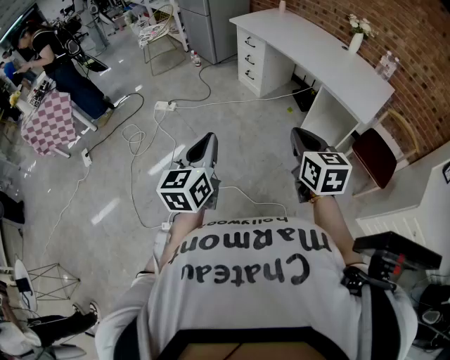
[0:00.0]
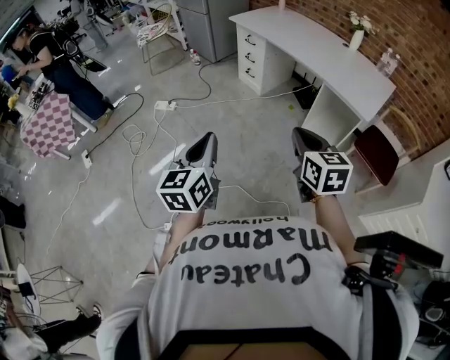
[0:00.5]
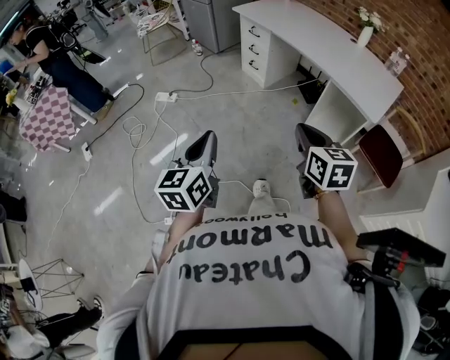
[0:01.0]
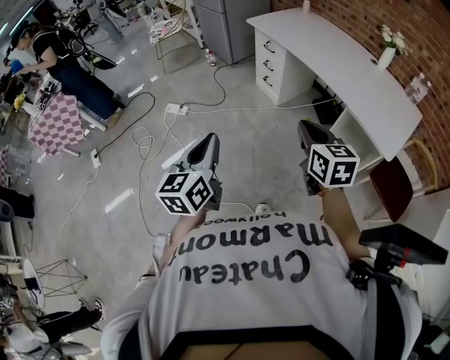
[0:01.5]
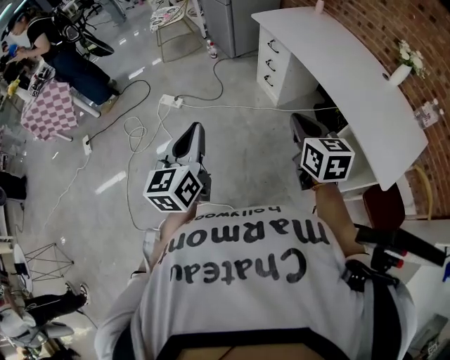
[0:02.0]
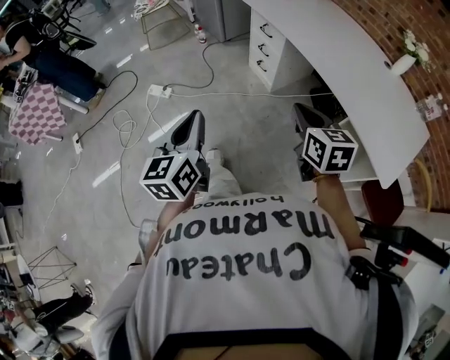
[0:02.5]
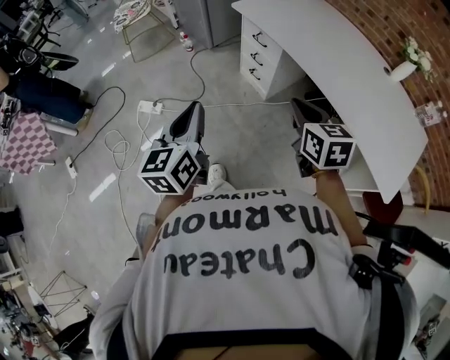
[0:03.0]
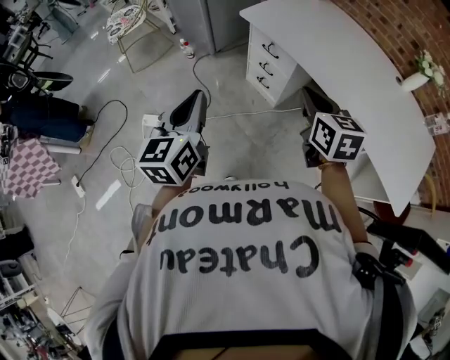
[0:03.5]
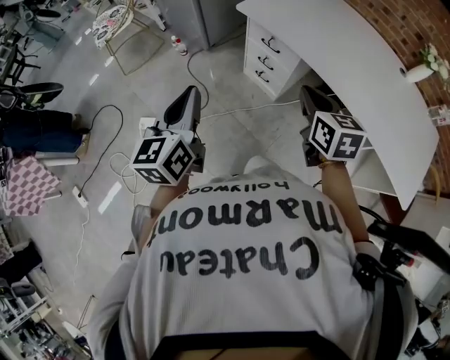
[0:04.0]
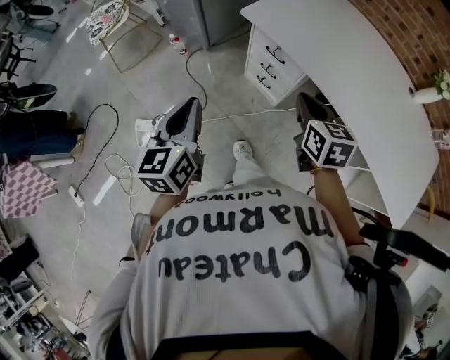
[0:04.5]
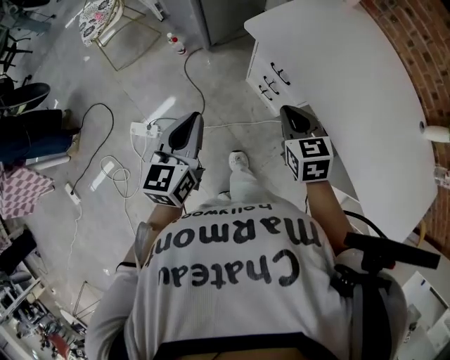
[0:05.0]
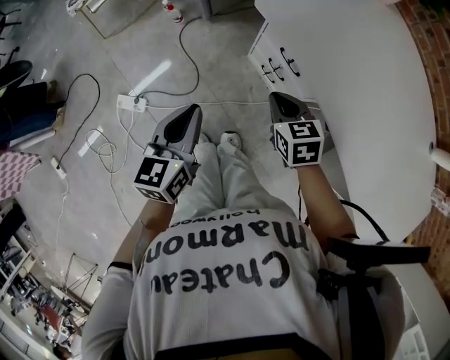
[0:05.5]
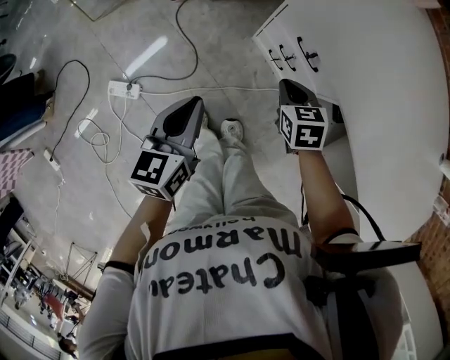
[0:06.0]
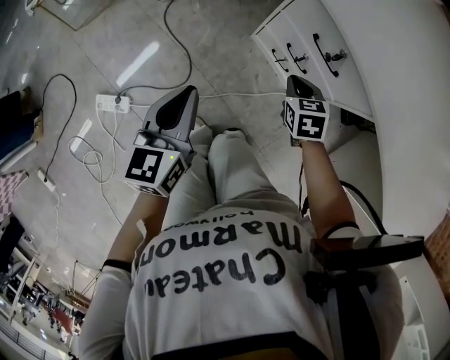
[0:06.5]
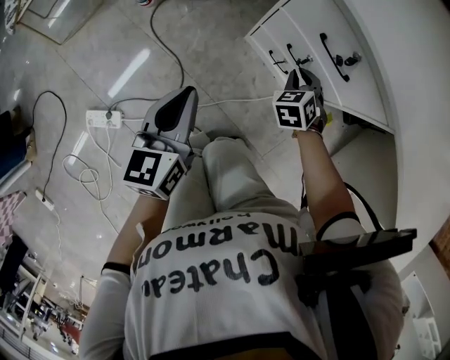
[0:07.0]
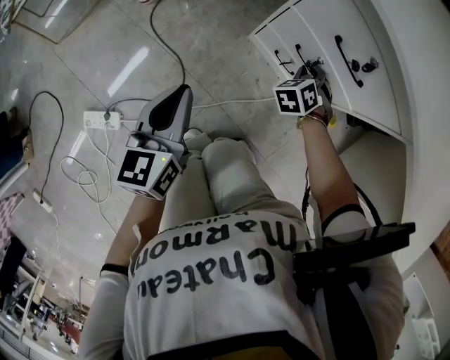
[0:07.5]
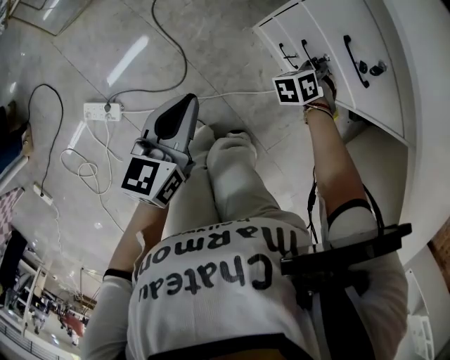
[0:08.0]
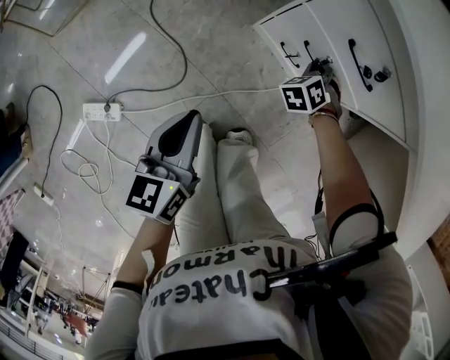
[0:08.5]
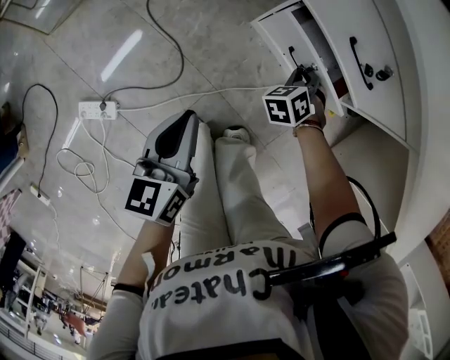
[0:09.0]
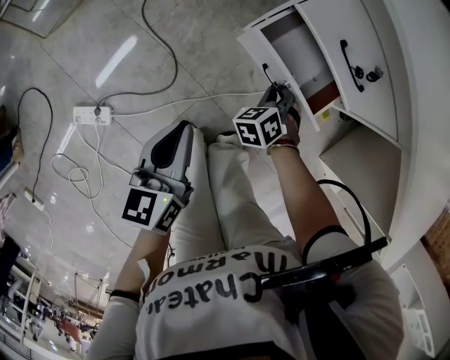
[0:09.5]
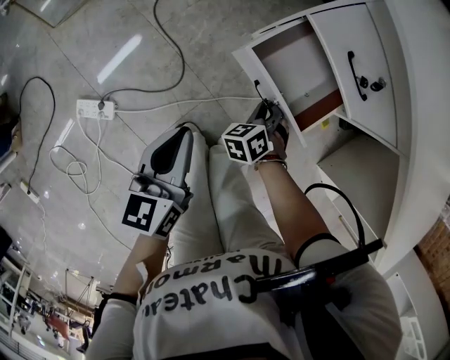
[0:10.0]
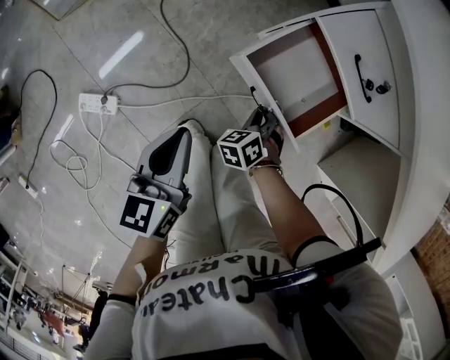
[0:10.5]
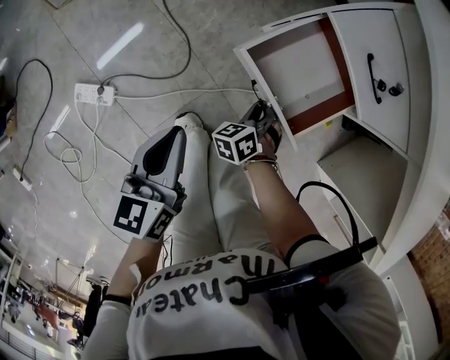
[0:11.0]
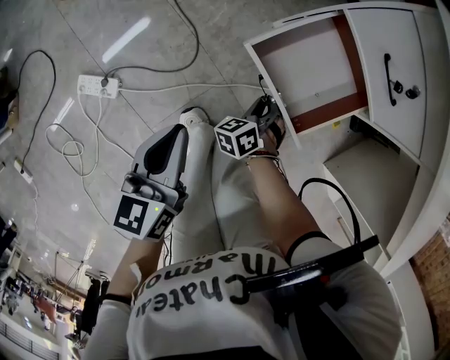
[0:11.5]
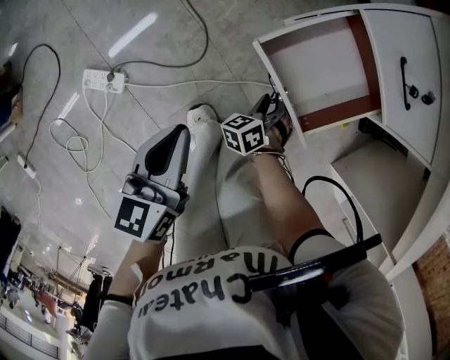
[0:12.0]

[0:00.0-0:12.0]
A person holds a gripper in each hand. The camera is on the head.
0:00.0 to 0:02.0: The grippers both shift forward by approximately 30 cm.
0:02.0 to 0:04.0: Both grippers travel together forward, about 40 cm.
0:04.0 to 0:06.0: The grippers both shift downward and forward by about 40 cm. The left gripper rotates roughly 20 degrees, while the right gripper rotates approximately 30 degrees.
0:06.0 to 0:08.0: The grippers both shift downward by approximately 25 cm. The right gripper swivels some 50 degrees.
0:08.0 to 0:10.0: The left gripper heads backward, covering approximately 5 cm; the right gripper shifts about 15 cm backward.
0:10.0 to 0:12.0: The left gripper moves backward, some 5 cm. The right gripper travels downward and backward by roughly 10 cm.

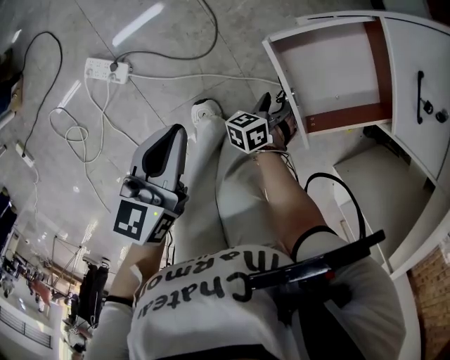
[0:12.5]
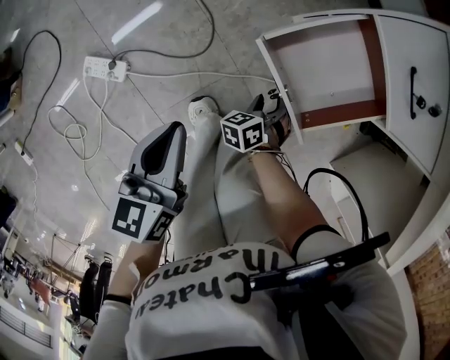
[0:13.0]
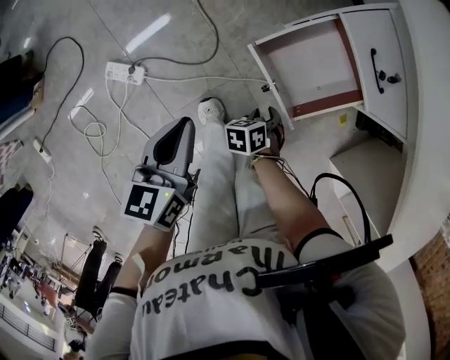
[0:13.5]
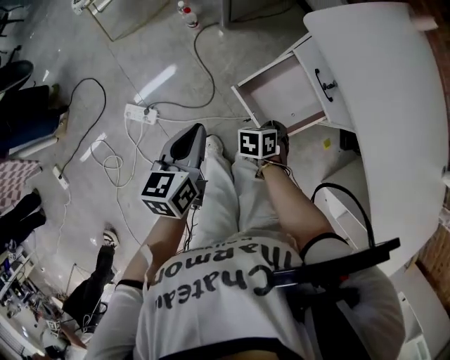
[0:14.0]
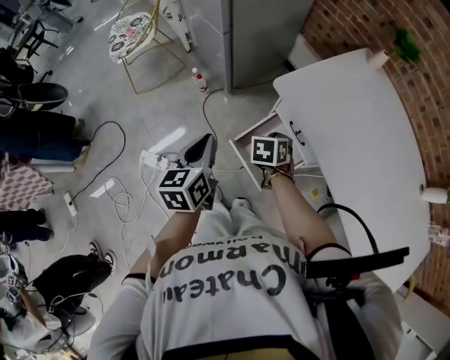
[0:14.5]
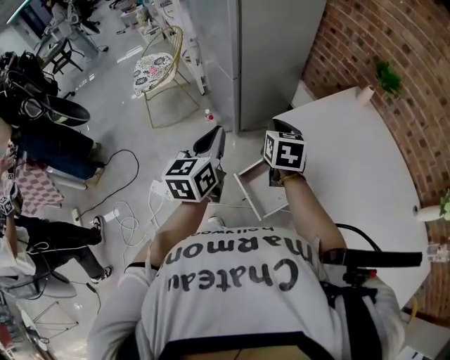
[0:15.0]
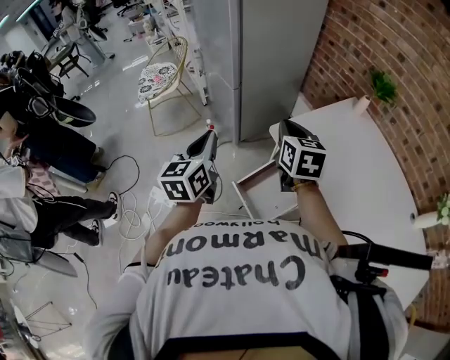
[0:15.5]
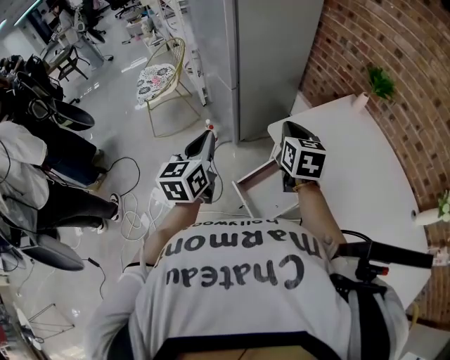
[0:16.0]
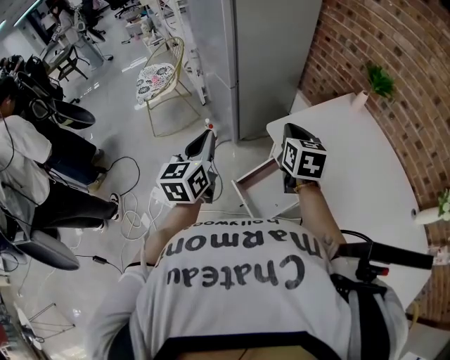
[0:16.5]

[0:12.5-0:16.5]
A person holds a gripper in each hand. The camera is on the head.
0:12.5 to 0:14.5: The grippers both shift upward by about 40 cm. The right gripper swivels roughly 30 degrees, and closes up.
0:14.5 to 0:16.5: The left gripper shifts some 15 cm upward. Meanwhile the right gripper goes roughly 25 cm upward, and angles its fingers upward, by roughly 30 degrees.

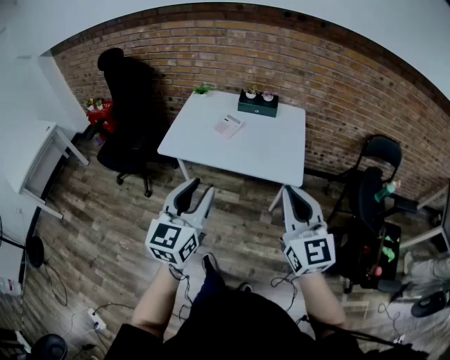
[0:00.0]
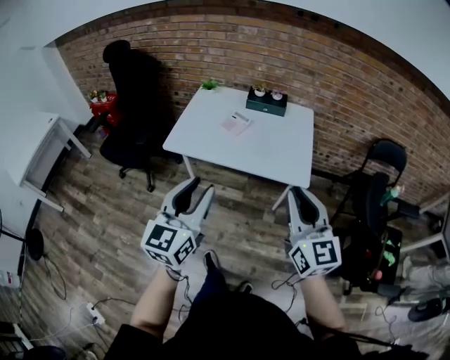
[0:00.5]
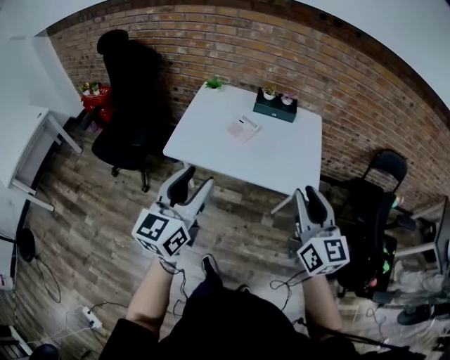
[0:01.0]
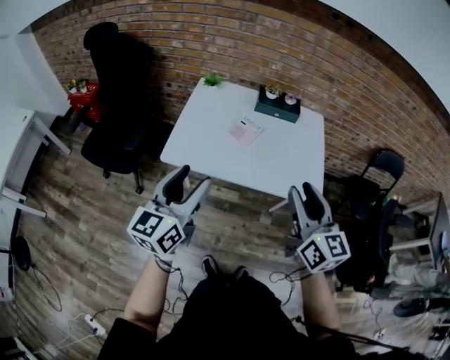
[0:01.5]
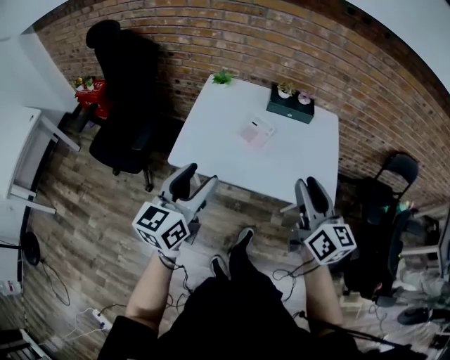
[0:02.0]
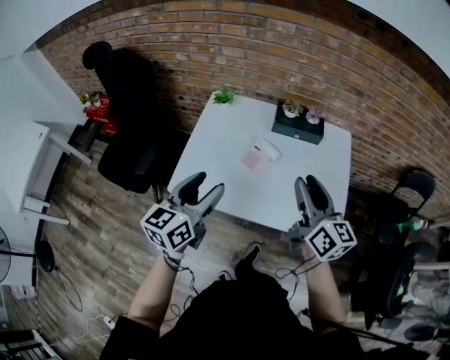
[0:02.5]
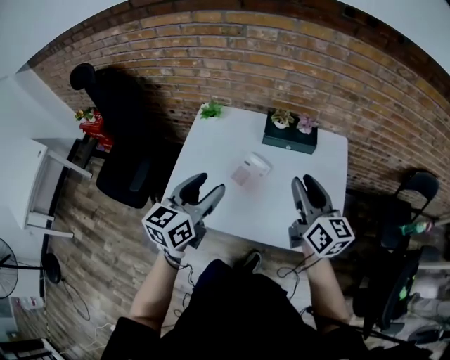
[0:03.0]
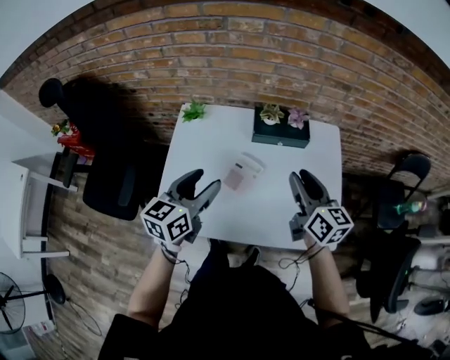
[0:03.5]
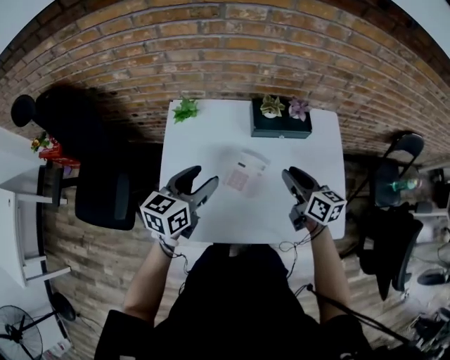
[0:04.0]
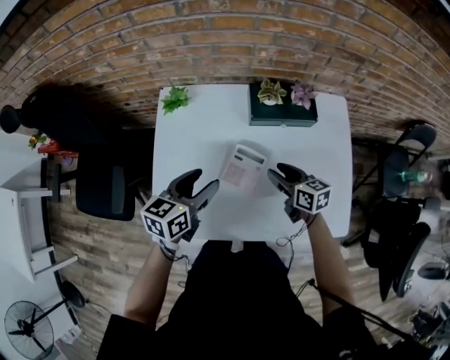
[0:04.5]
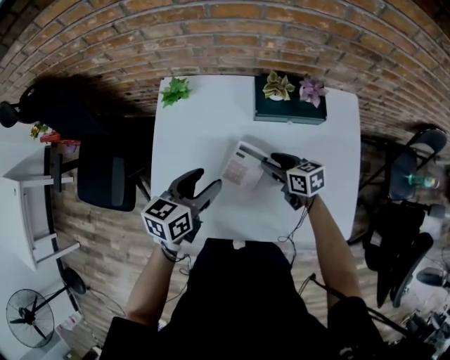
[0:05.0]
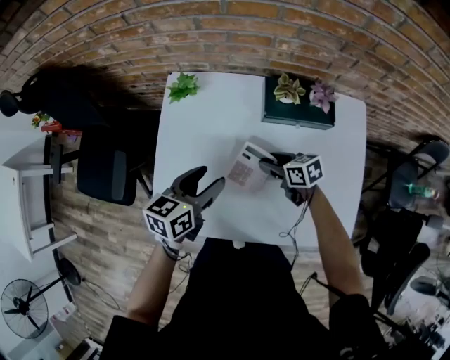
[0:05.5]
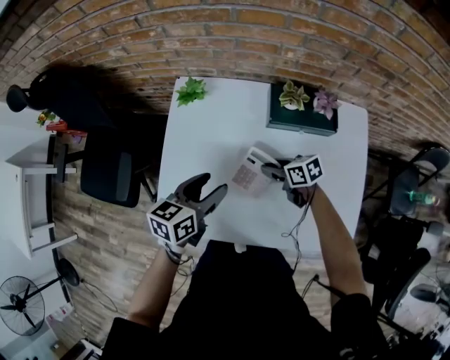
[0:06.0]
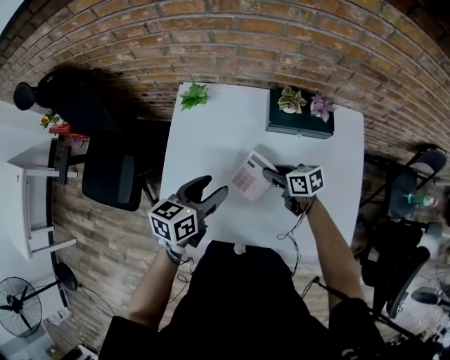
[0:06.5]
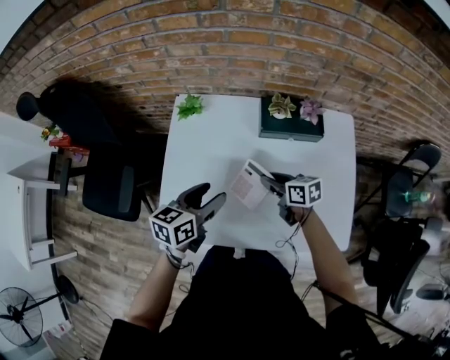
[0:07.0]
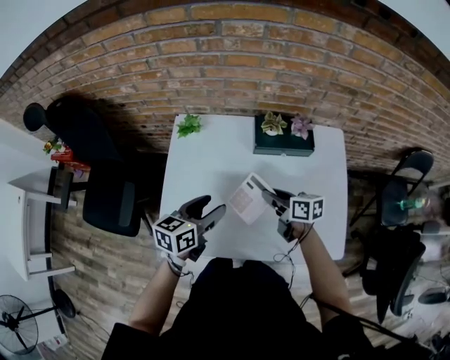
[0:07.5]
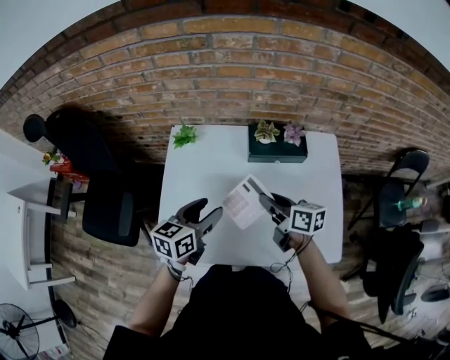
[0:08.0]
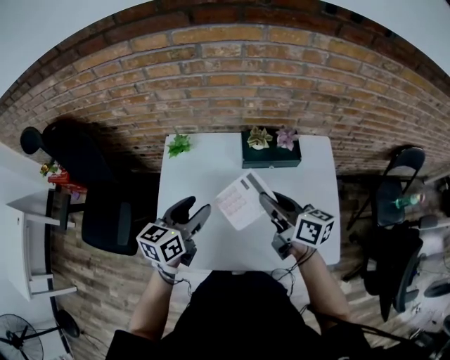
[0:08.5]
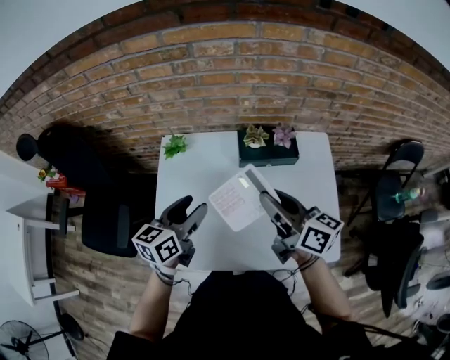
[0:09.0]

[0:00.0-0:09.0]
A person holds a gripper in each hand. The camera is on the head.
0:00.0 to 0:02.0: Both grippers travel together forward and to the left, approximately 30 cm. The left gripper opens up. Meanwhile the right gripper rotates about 30 degrees, and opens.
0:02.0 to 0:04.5: The grippers both shift forward and downward by about 40 cm. The right gripper turns by some 30 degrees. Meanwhile the left gripper turns by some 30 degrees.
0:04.5 to 0:07.0: The right gripper goes about 5 cm to the left, and closes its fingers.
0:07.0 to 0:09.0: The left gripper travels upward by roughly 10 cm, while the right gripper goes about 25 cm upward, and turns by approximately 30 degrees.

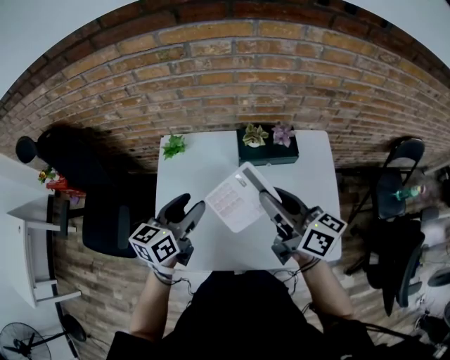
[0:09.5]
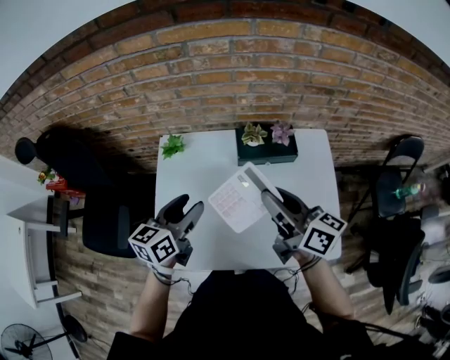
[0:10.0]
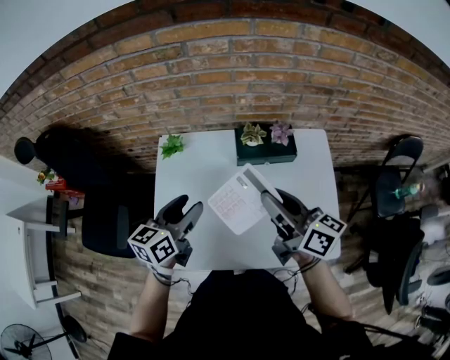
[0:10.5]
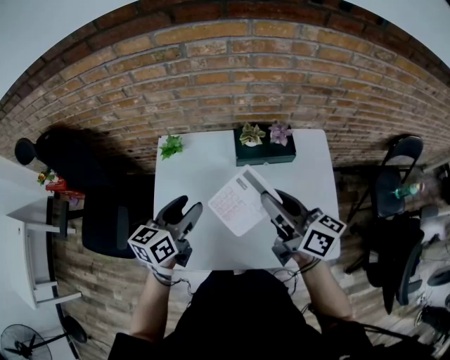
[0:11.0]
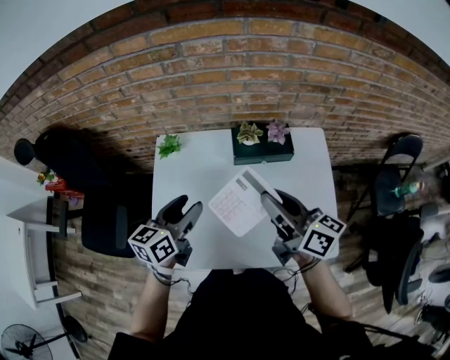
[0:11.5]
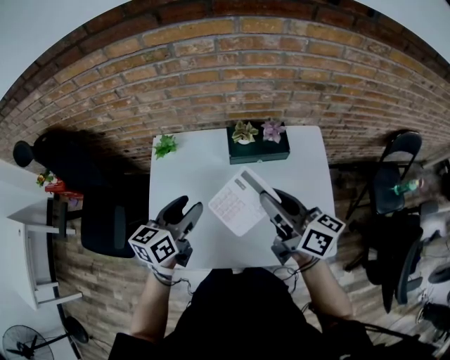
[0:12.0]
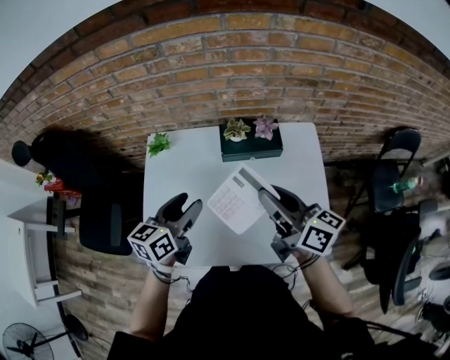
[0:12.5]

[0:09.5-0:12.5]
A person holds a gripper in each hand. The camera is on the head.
0:09.5 to 0:11.0: The grippers make only small movements.
0:11.0 to 0:12.5: Both grippers move to the right, approximately 5 cm.
